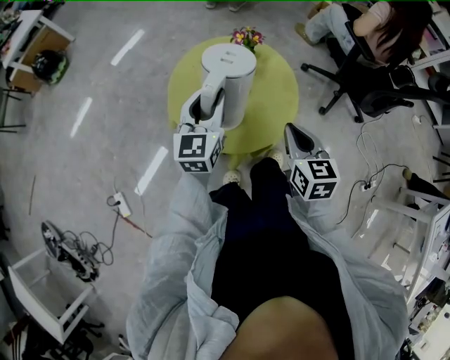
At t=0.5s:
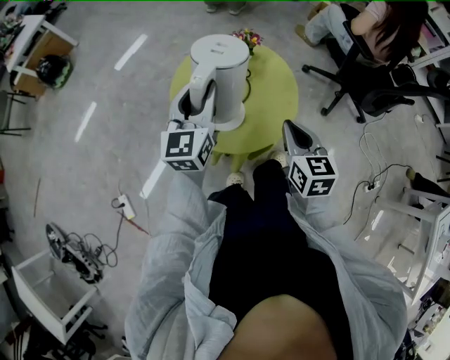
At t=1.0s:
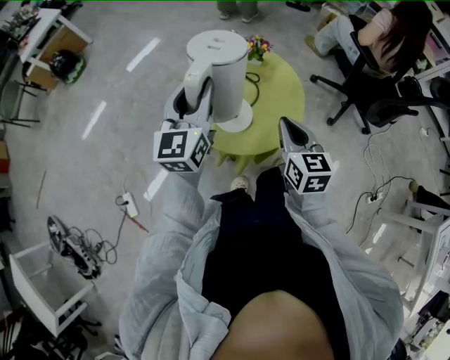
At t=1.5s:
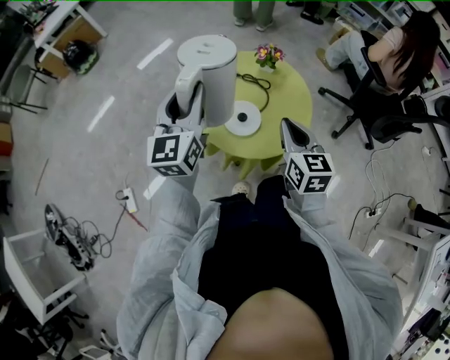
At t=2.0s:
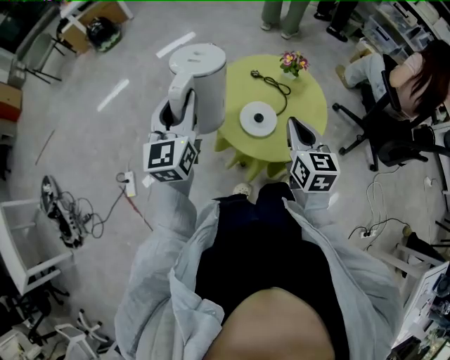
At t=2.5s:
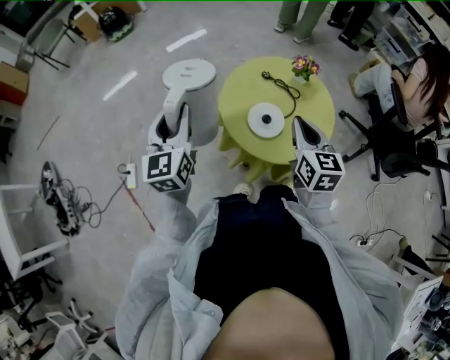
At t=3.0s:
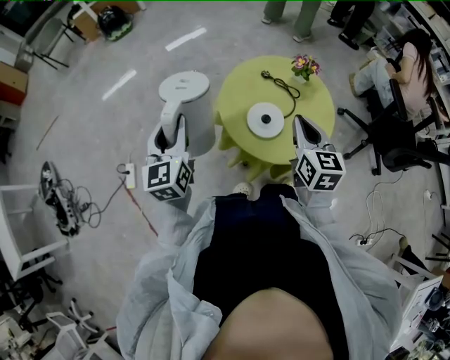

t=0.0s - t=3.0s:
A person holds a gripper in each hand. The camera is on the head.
t=0.0s - t=1.5s: The left gripper is displaced upward and to the left by about 15 cm. Meanwhile the right gripper ends up some 5 cm from where it was.
t=1.5s - t=3.0s: The right gripper shifts by about 5 cm; the left gripper is displaced to the left, downward and backward by about 20 cm, and swivels roughly 20 degrees.

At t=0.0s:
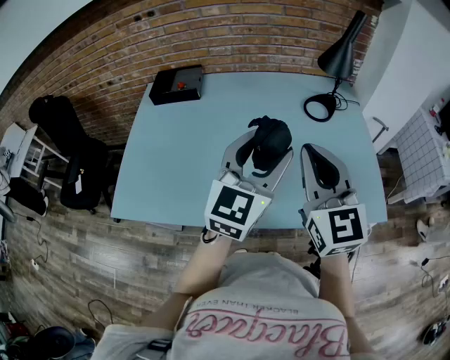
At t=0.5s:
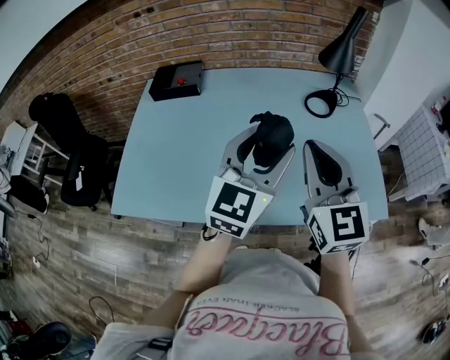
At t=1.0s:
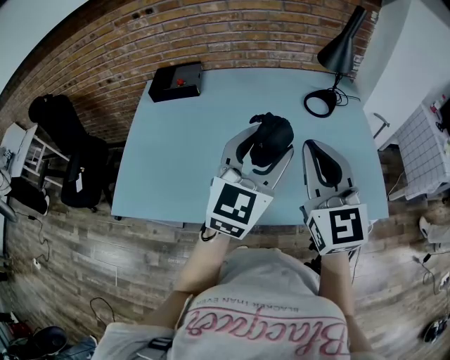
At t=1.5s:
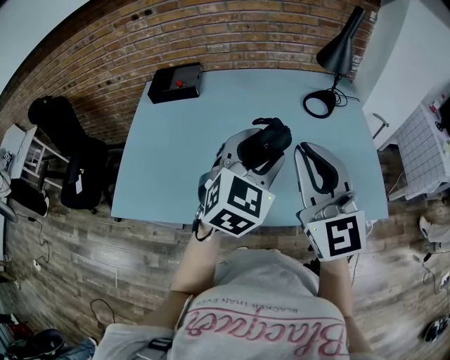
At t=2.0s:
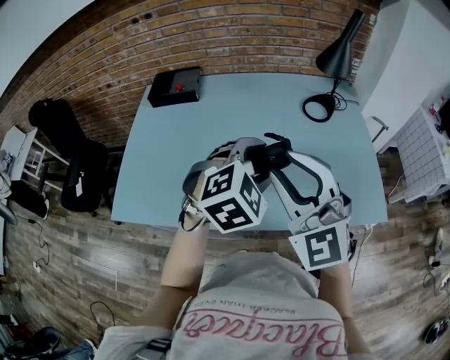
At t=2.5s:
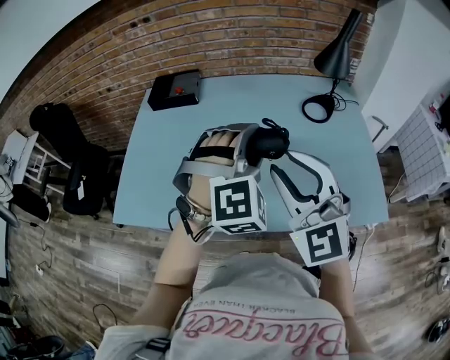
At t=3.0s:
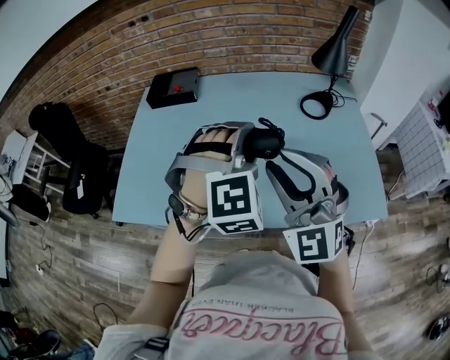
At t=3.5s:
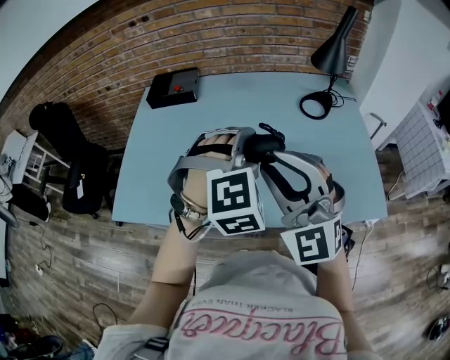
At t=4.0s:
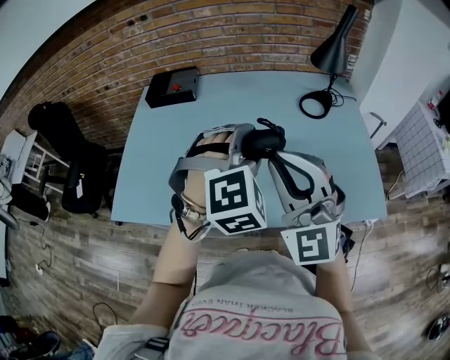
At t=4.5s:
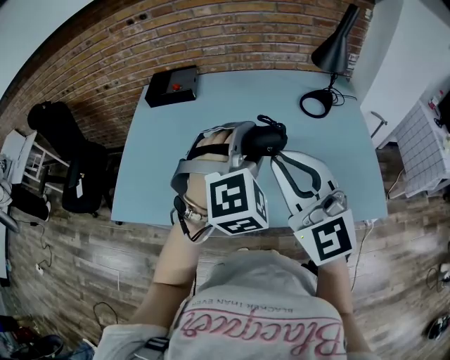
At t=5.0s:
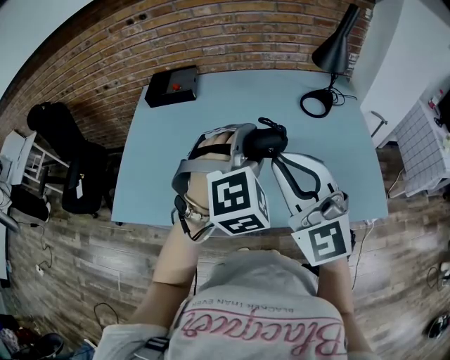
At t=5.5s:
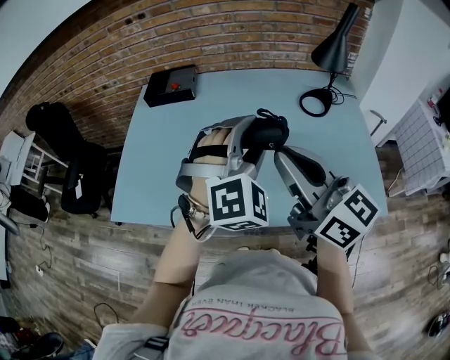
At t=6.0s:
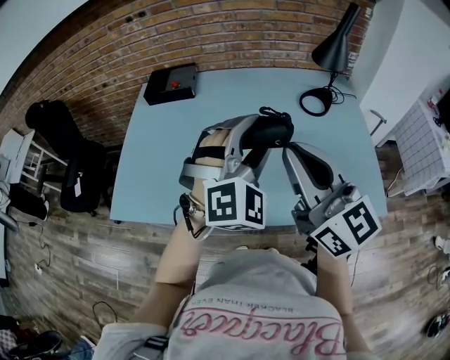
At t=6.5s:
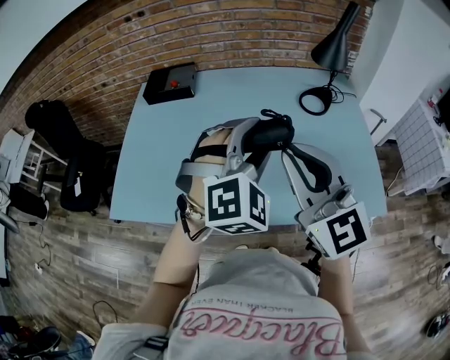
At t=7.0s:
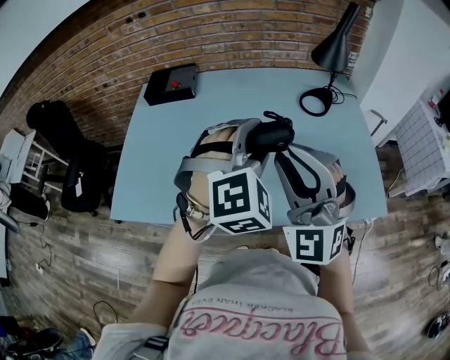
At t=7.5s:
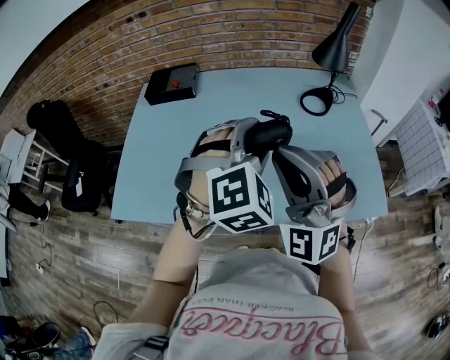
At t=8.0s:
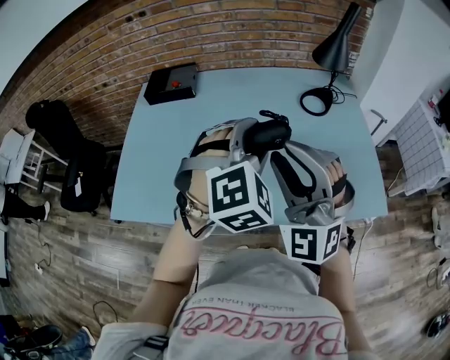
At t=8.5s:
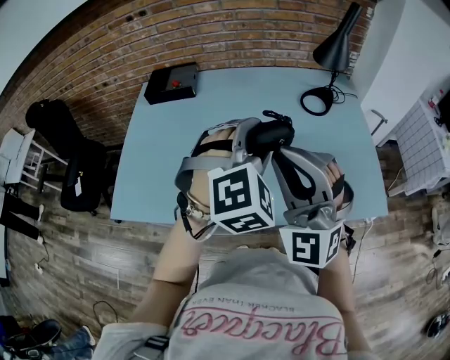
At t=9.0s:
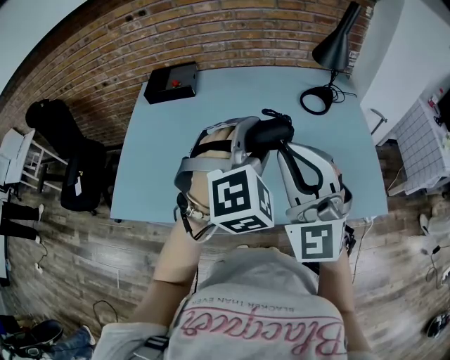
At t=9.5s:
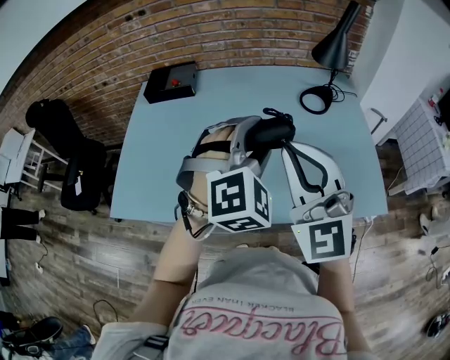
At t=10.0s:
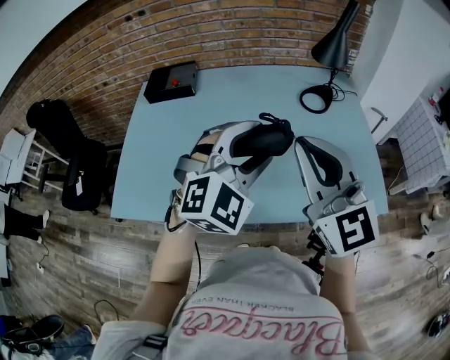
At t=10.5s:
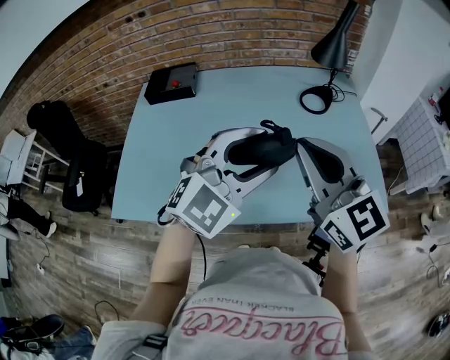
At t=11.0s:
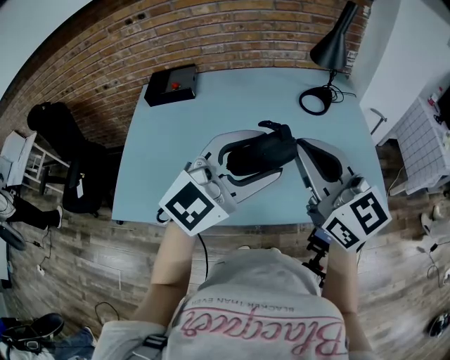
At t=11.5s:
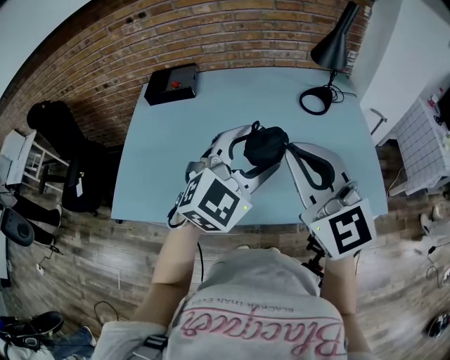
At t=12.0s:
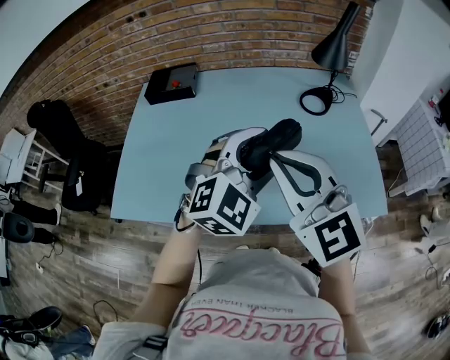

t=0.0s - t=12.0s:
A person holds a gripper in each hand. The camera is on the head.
t=0.0s - t=2.0s: The right gripper shifts about 5 cm to the left, swivels about 30 degrees, and opens up, while the left gripper goes some 5 cm downward, and tips its fingers downward by about 40 degrees.
t=2.0s - t=4.0s: The right gripper closes its fingers, while the left gripper turns by approximately 20 degrees.
t=4.0s - t=6.0s: The left gripper changes its angle by about 20 degrees; the right gripper rotates around the line of its fingers by roughly 50 degrees, clockwise from behind.
t=6.0s - t=8.0s: The right gripper rotates around the line of its fingers by about 70 degrees, counterclockwise from behind.
t=8.0s - t=10.0s: The left gripper rotates about 20 degrees; the right gripper ends up about 5 cm from where it was, rotates around the line of its fingers by roughly 40 degrees, clockwise from behind, and closes.
t=10.0s - t=12.0s: The right gripper changes place by about 5 cm.

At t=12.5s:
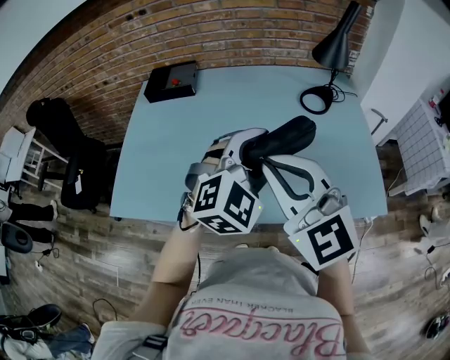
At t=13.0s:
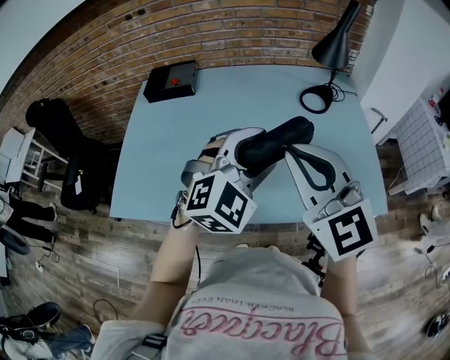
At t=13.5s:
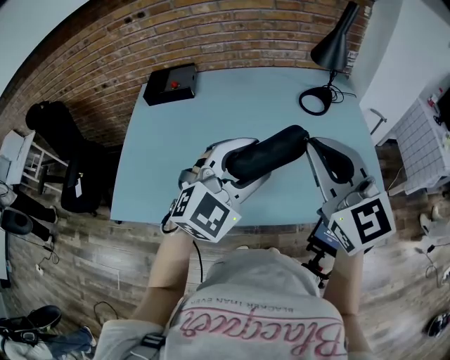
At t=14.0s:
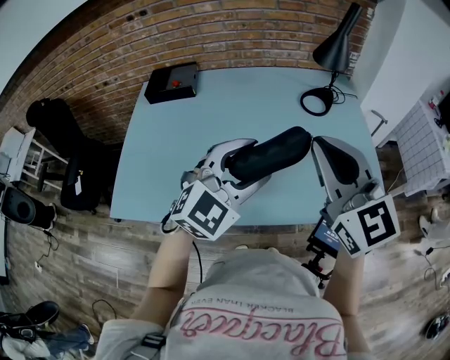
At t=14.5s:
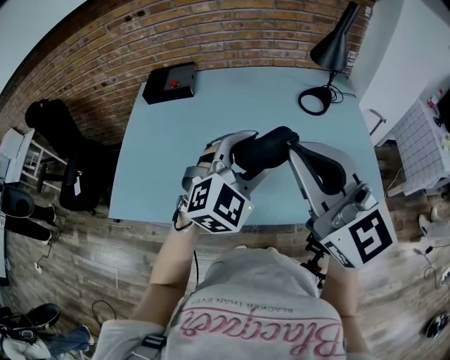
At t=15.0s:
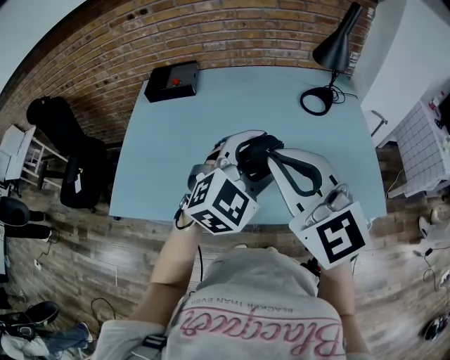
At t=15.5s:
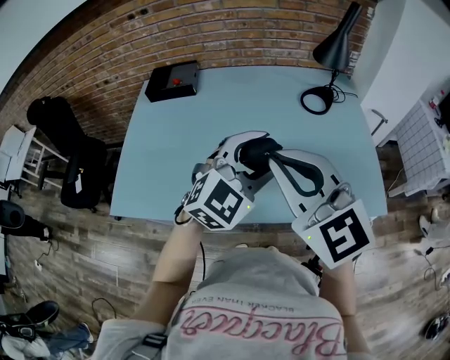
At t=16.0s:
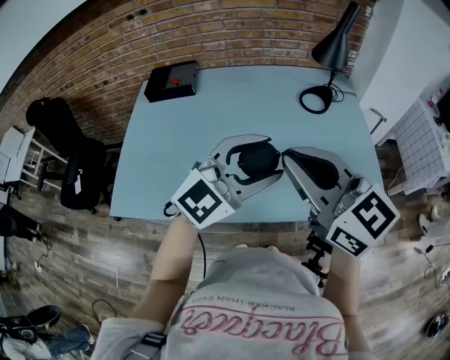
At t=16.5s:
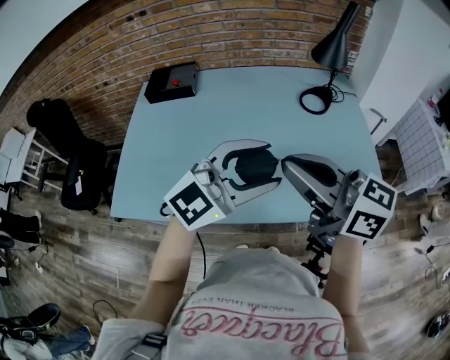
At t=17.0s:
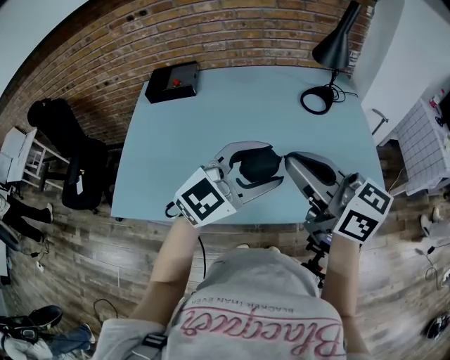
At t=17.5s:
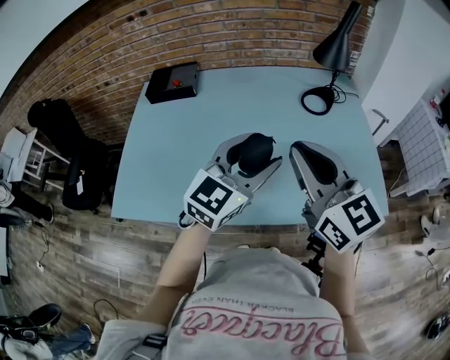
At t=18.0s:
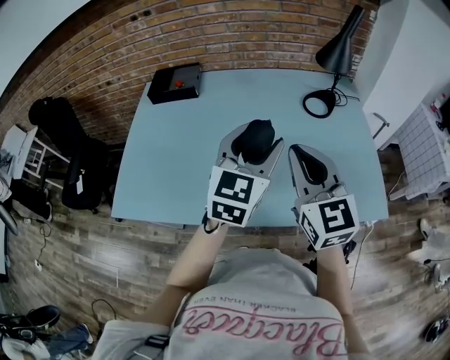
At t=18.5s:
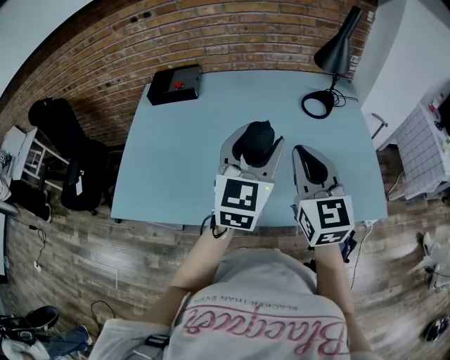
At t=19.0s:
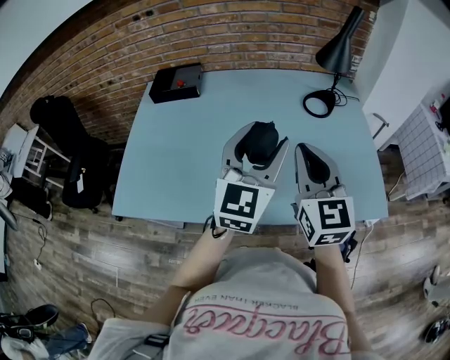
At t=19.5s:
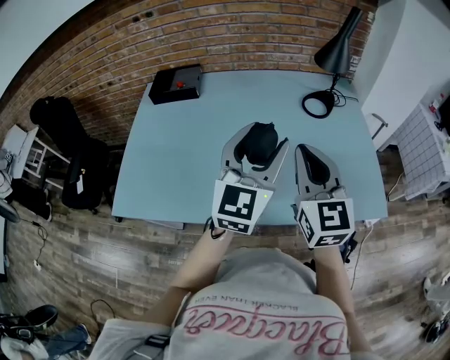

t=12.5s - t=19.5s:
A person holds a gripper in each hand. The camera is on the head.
t=12.5s - t=14.5s: The right gripper shifts approximately 5 cm upward.
t=14.5s - t=16.0s: The left gripper changes place by roughly 5 cm, and turns by about 30 degrees.
t=16.0s - t=17.5s: The left gripper changes place by about 5 cm, and turns by roughly 30 degrees.
t=17.5s - t=19.5s: The left gripper swivels roughly 20 degrees; the right gripper turns by roughly 20 degrees.

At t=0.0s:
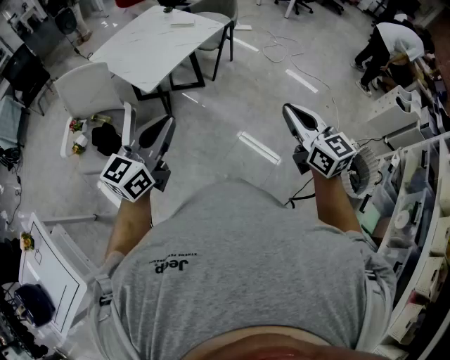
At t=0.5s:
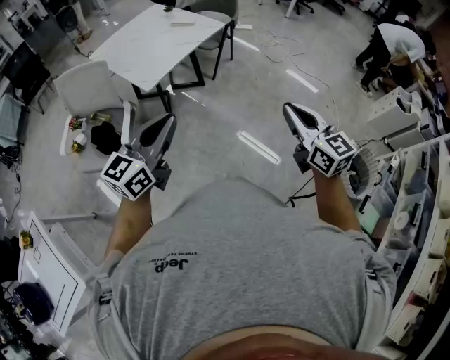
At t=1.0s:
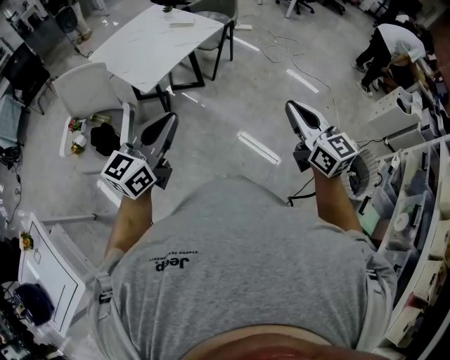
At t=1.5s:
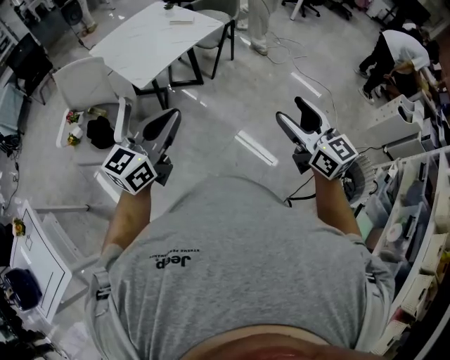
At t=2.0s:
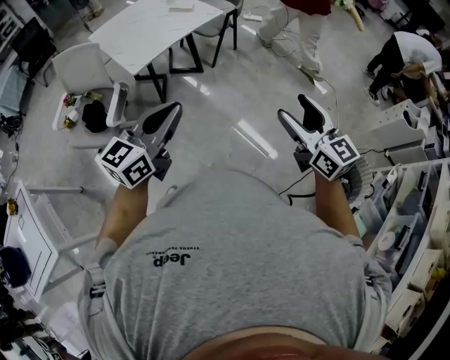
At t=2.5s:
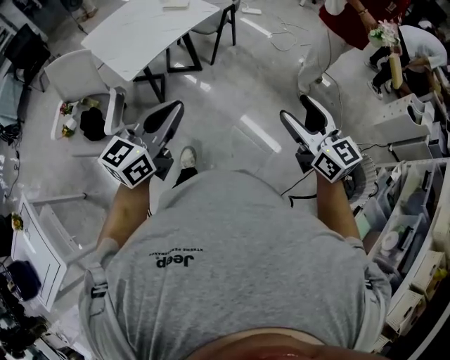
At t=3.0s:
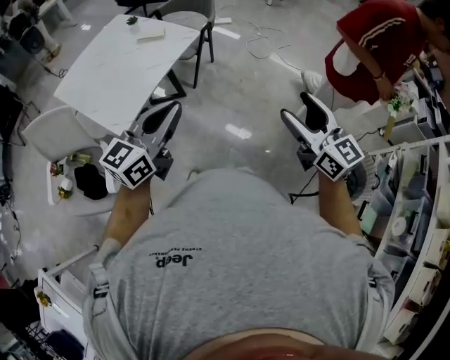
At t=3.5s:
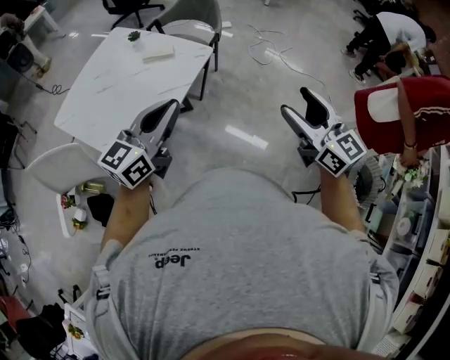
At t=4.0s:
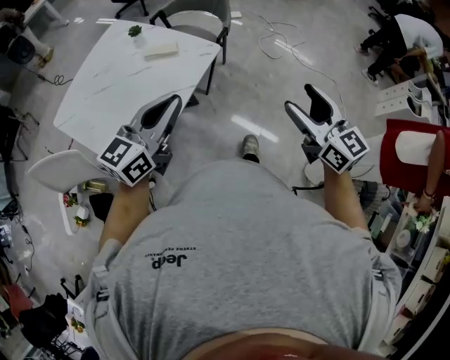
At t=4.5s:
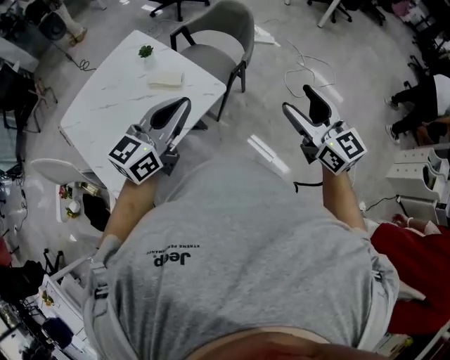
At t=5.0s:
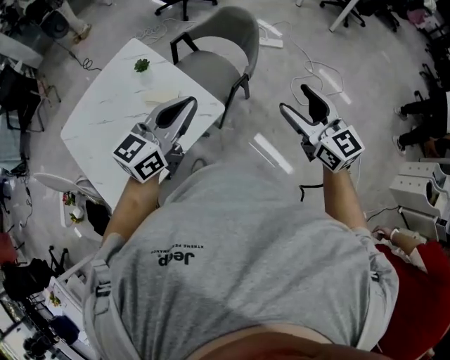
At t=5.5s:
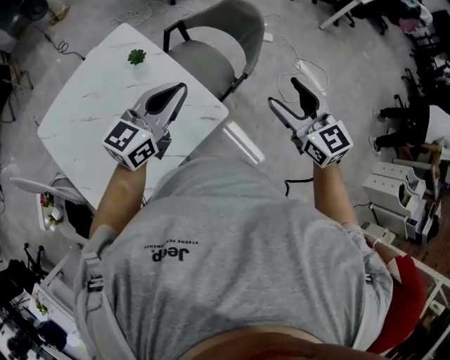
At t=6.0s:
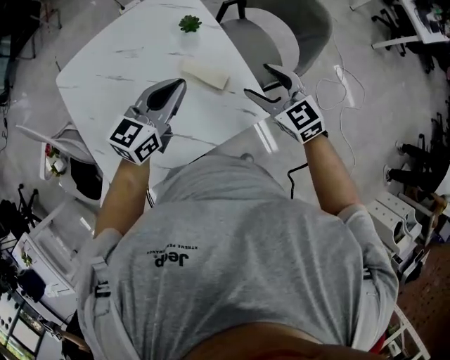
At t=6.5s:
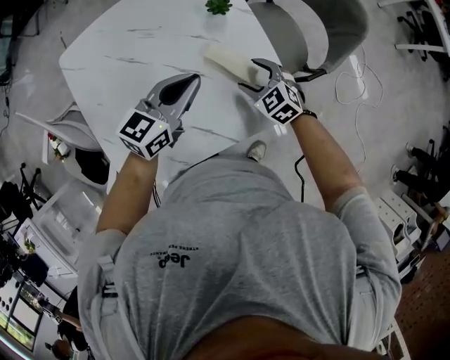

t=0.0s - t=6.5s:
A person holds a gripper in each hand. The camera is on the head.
t=0.0s - t=2.0s: Both grippers move to the right, roughly 15 cm. The right gripper opens its fingers.
t=2.0s - t=4.5s: Both grippers are carried forward, about 70 cm.
t=4.5s - t=6.5s: The right gripper changes place by approximately 60 cm, and angles its fingers downward, by some 40 degrees. Meanwhile the left gripper changes place by some 35 cm, and turns by roughly 20 degrees.
